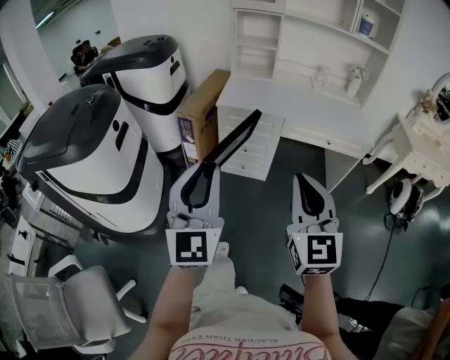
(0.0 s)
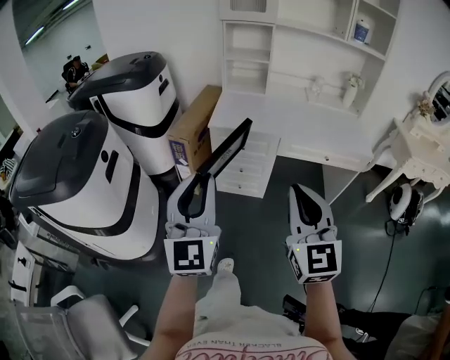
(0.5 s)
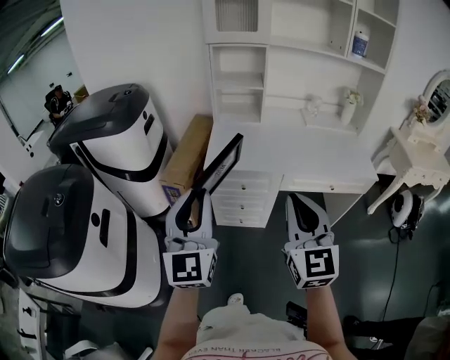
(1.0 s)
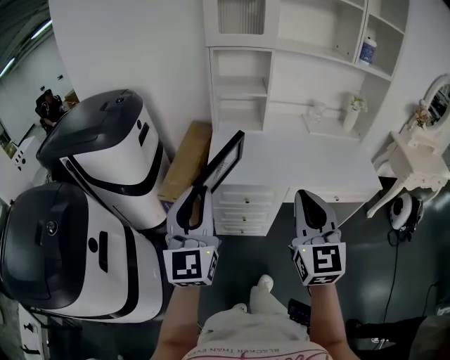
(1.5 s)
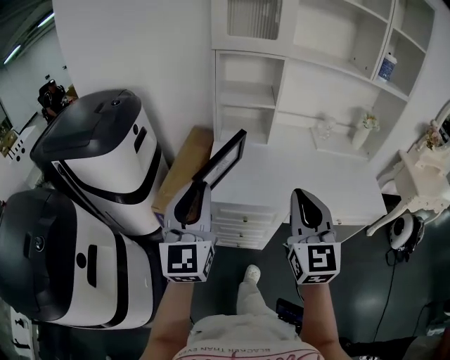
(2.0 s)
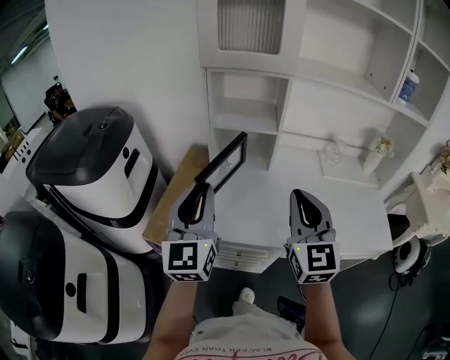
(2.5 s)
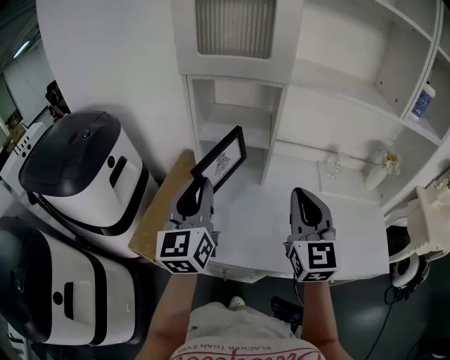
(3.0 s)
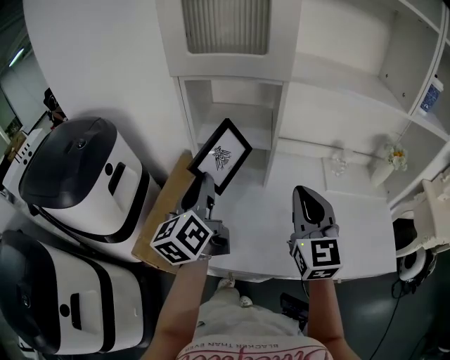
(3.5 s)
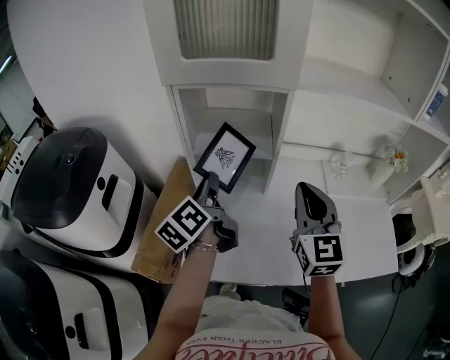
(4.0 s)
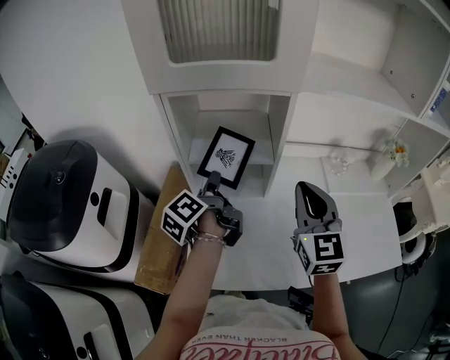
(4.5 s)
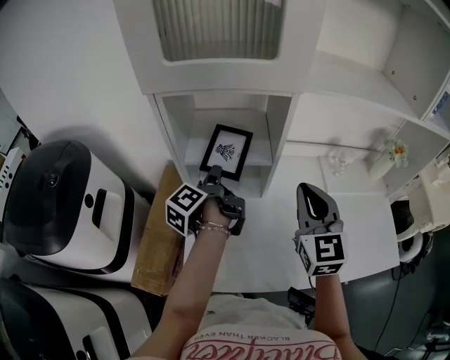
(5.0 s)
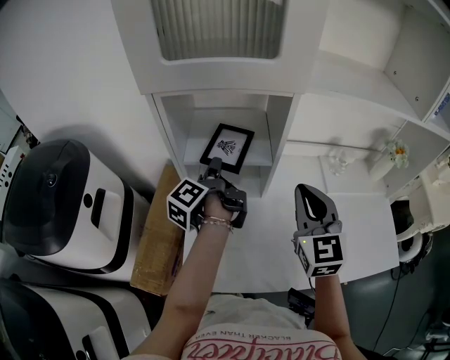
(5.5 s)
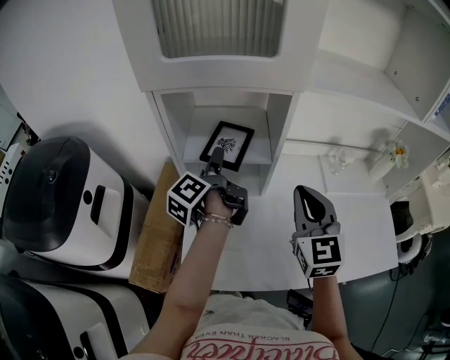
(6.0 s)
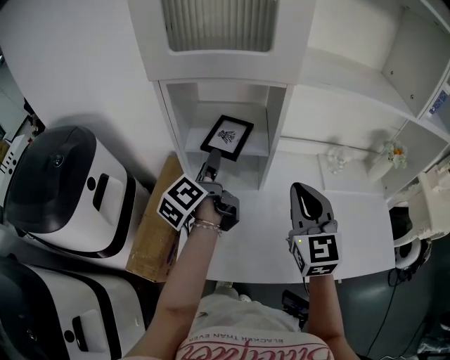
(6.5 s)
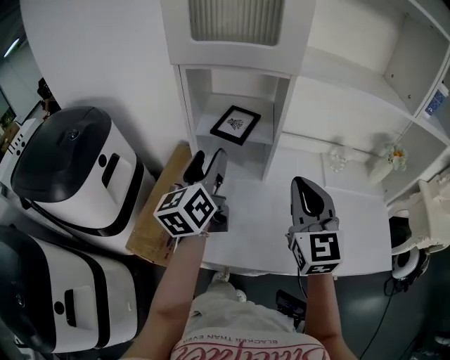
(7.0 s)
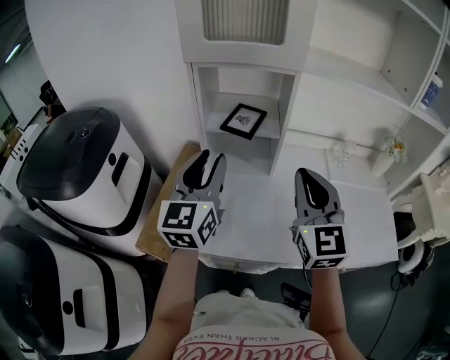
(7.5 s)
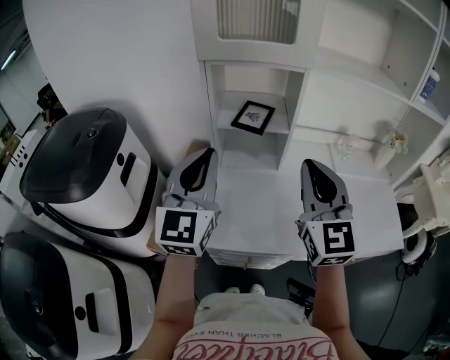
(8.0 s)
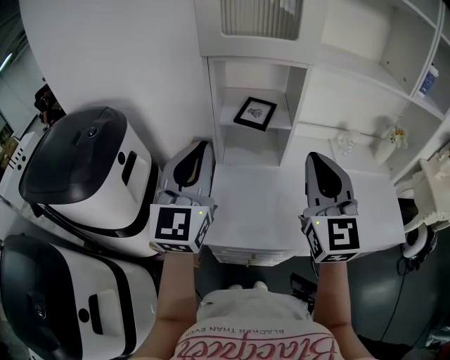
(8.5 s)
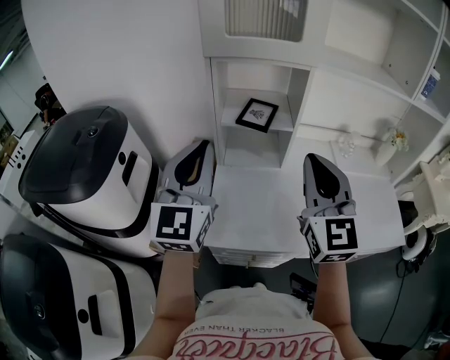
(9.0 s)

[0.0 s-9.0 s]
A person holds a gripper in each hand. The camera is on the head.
0.0 to 2.0 s: Both grippers are carried forward, some 50 cm.
2.0 to 4.5 s: The two grippers go some 40 cm forward. The left gripper rotates around the line of its fingers by some 80 degrees, counterclockwise from behind.
4.5 to 7.0 s: The right gripper travels backward by approximately 5 cm; the left gripper is displaced backward and upward by some 10 cm, twists some 50 degrees clockwise, seen from behind, and opens.
7.0 to 9.0 s: The right gripper shifts roughly 10 cm to the left, upward and backward; the left gripper travels backward, upward and to the left by some 15 cm, rotates roughly 40 degrees, and closes.

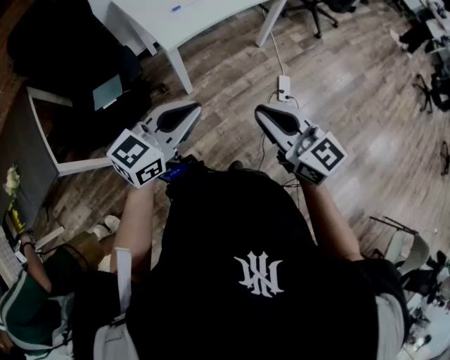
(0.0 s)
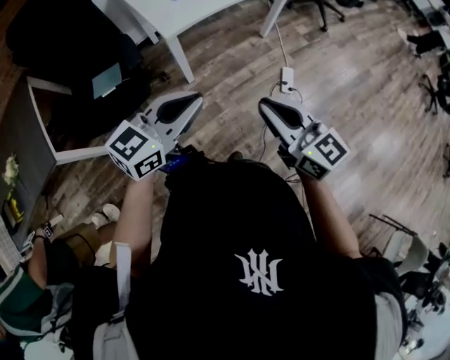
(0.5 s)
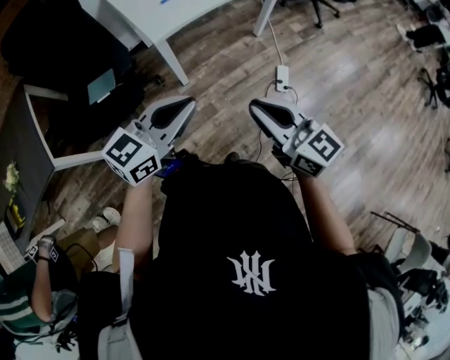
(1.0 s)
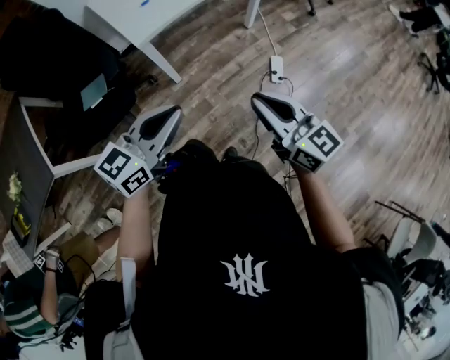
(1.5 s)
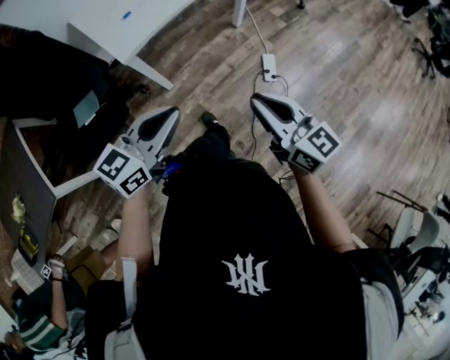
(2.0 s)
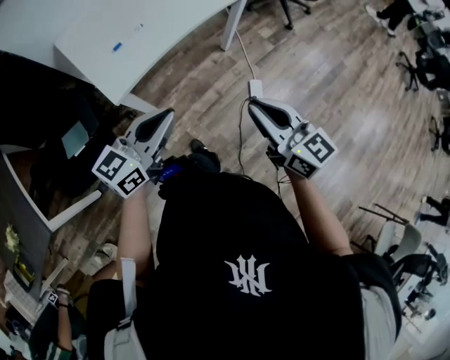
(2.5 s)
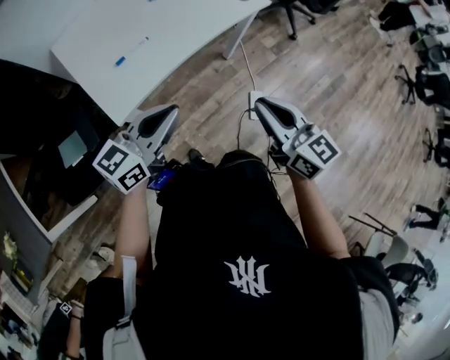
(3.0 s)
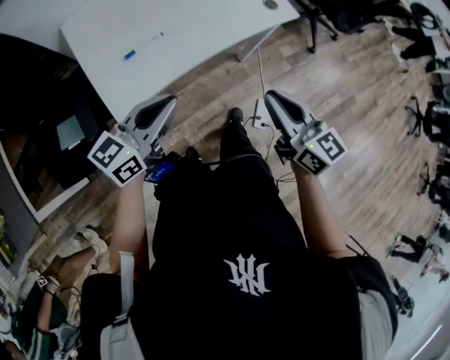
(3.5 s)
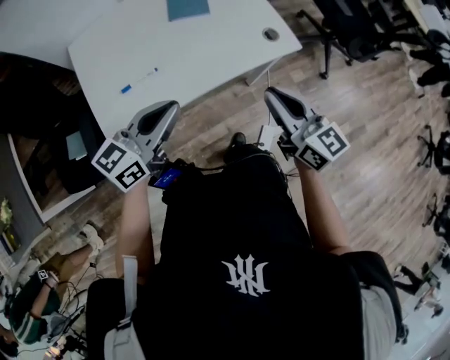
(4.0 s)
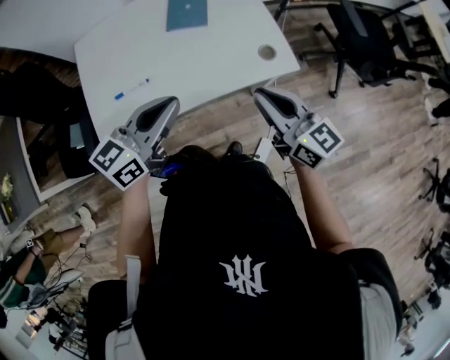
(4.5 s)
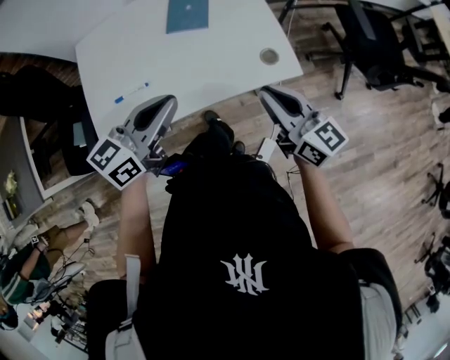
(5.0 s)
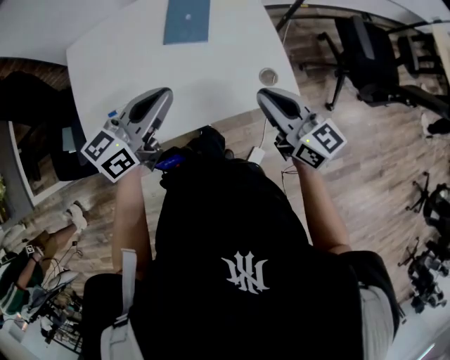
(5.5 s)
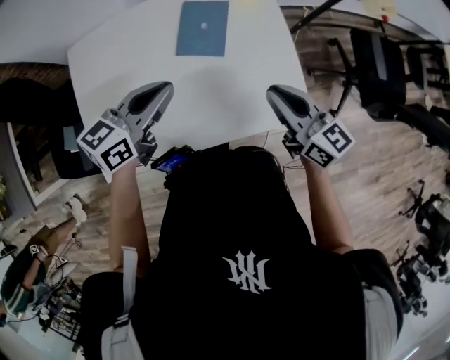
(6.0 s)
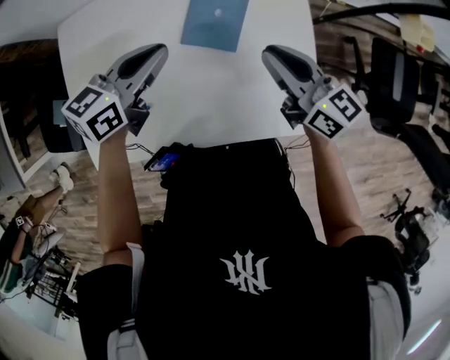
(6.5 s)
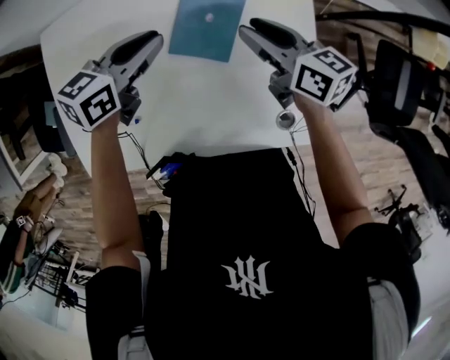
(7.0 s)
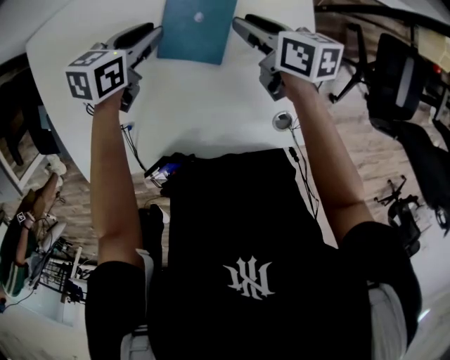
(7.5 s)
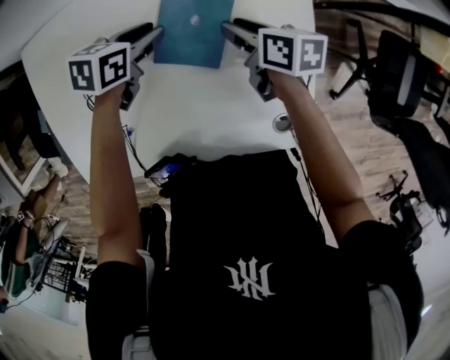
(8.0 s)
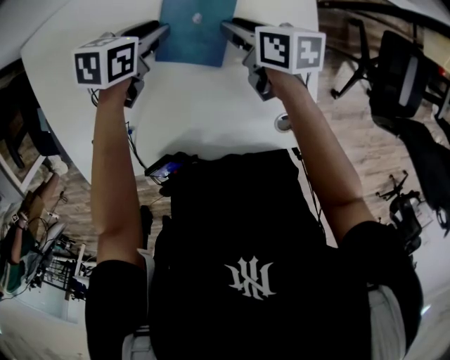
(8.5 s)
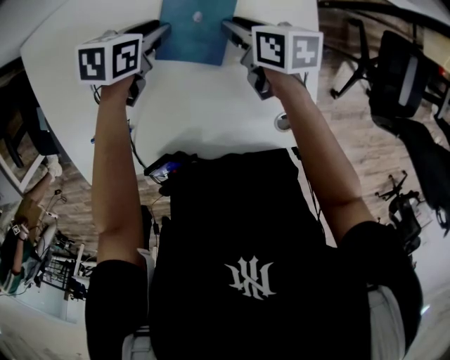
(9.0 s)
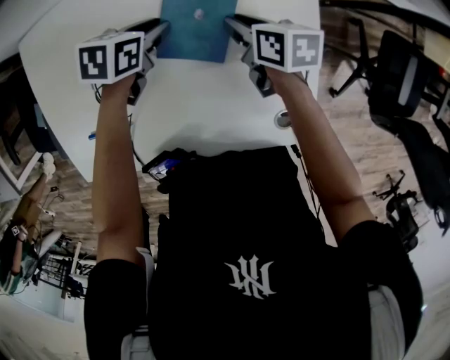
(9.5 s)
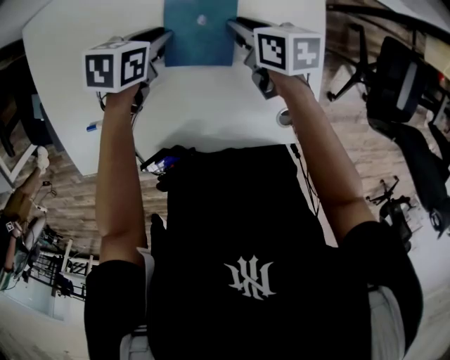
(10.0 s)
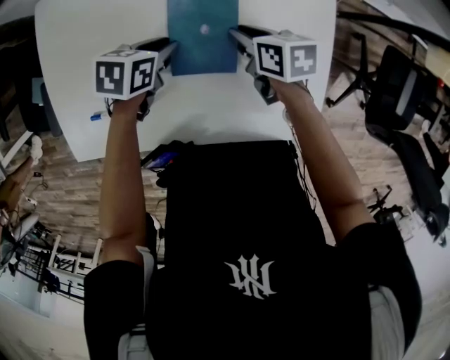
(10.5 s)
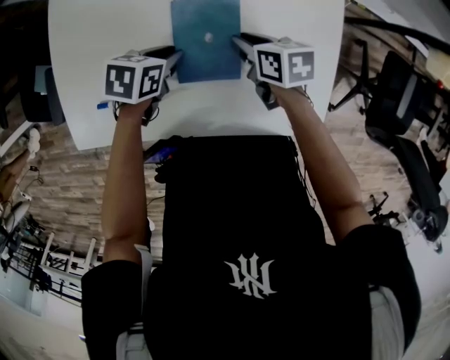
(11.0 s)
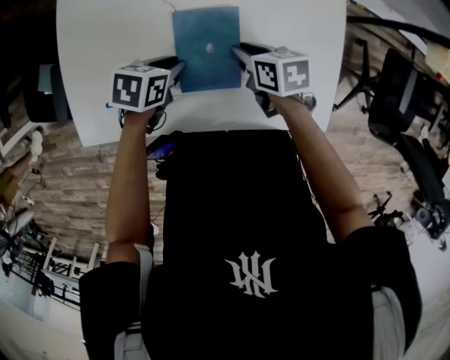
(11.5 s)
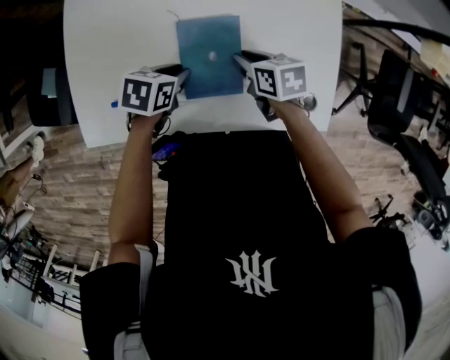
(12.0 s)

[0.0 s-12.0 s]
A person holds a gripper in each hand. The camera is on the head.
0.0 to 2.0 s: The right gripper goes roughly 15 cm to the right, forward and downward. The left gripper travels to the right and forward by roughly 10 cm.
2.0 to 4.0 s: The pair of grippers is taken forward, roughly 50 cm.
4.0 to 6.0 s: The grippers both shift forward by roughly 30 cm.
6.0 to 8.0 s: The right gripper goes approximately 30 cm forward, downward and to the left, rotates approximately 40 degrees, and opens up, while the left gripper moves downward and forward, roughly 25 cm, swivels roughly 30 degrees, and opens its fingers.
8.0 to 10.0 s: The left gripper changes place by some 5 cm.
10.0 to 12.0 s: The left gripper shifts about 15 cm backward. Meanwhile the right gripper goes about 15 cm backward and to the left.

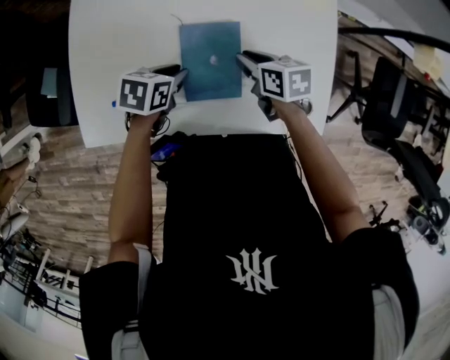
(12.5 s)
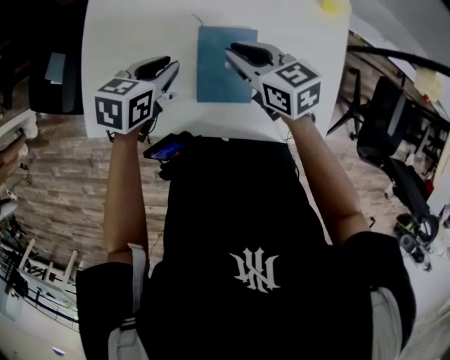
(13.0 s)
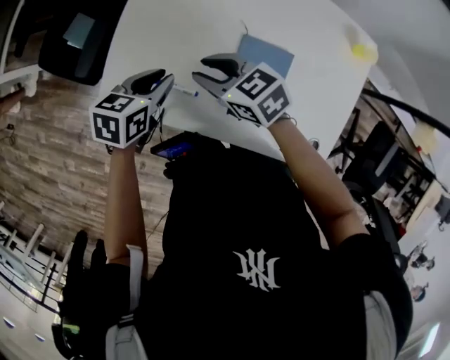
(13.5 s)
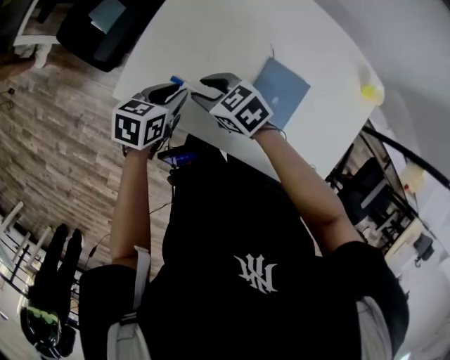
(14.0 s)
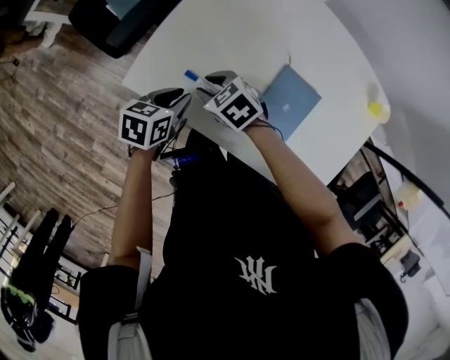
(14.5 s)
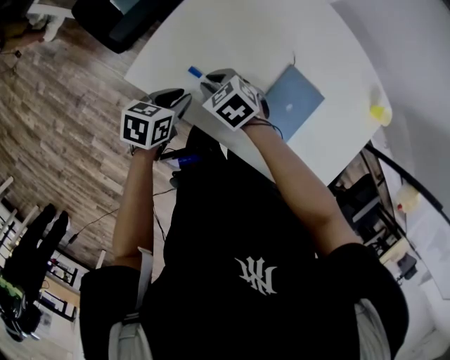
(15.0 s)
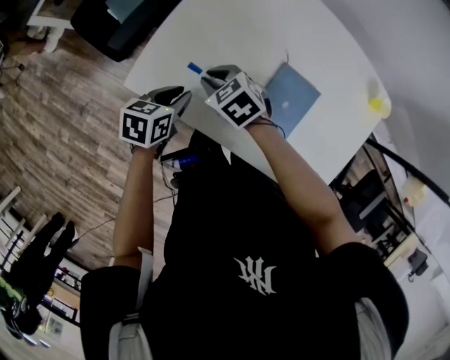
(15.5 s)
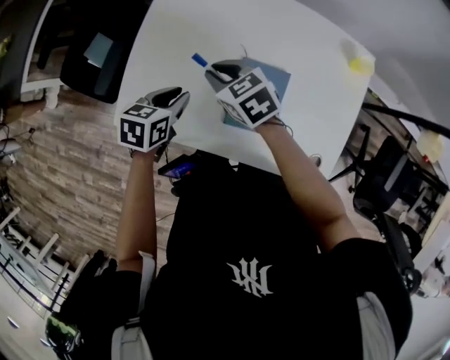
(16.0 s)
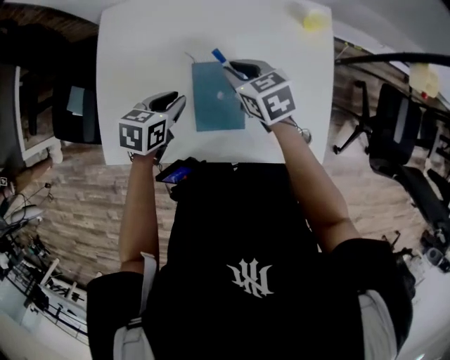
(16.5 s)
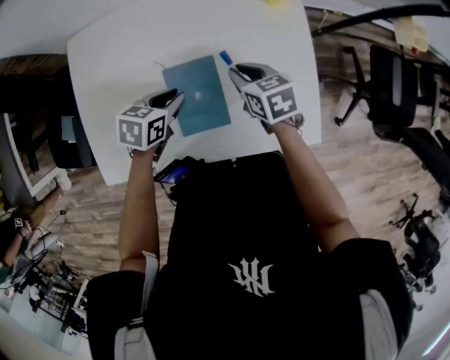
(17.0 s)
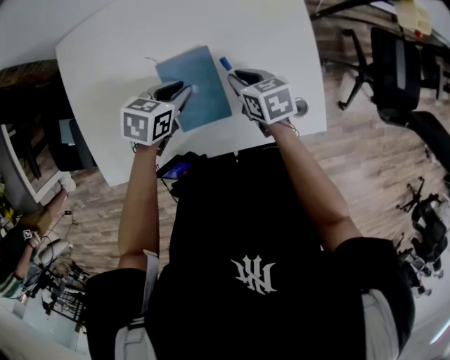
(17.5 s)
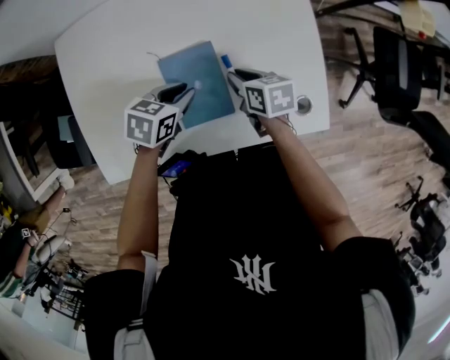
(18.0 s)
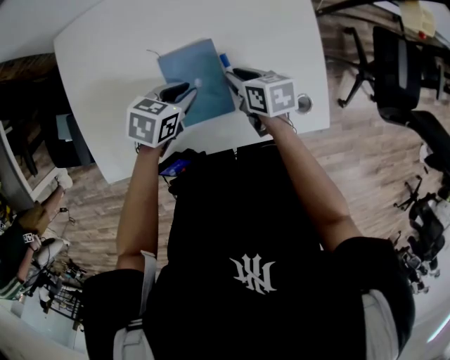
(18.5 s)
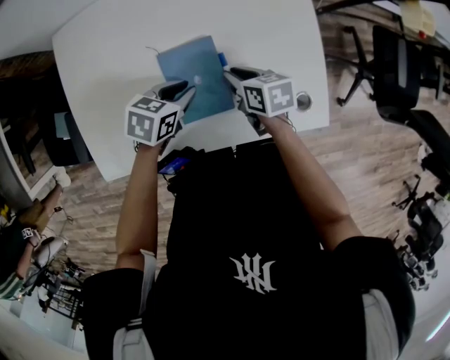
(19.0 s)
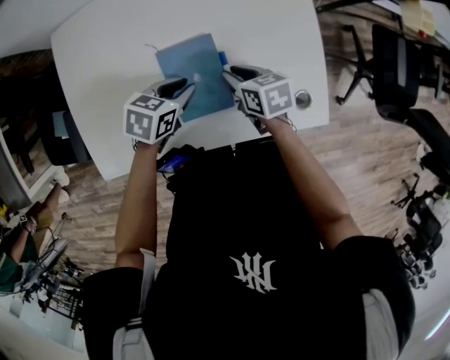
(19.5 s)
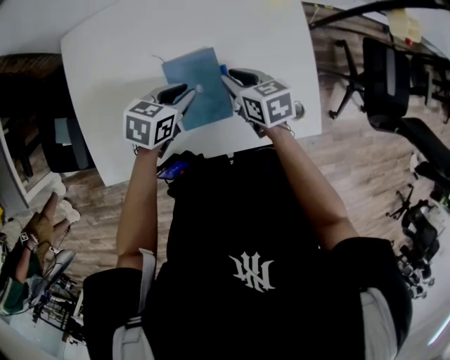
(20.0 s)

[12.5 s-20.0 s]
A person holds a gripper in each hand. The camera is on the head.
12.5 to 14.5 s: The right gripper reaches some 10 cm upward, then returns, and rotates around the line of its fingers by some 60 degrees, counterclockwise from behind; the left gripper moves some 10 cm upward and comes back, and swivels roughly 40 degrees.
14.5 to 16.5 s: The right gripper shifts by some 30 cm, and turns by approximately 50 degrees, while the left gripper shifts by approximately 20 cm, and changes its angle by approximately 30 degrees.
16.5 to 18.0 s: The right gripper moves downward, to the right and backward, approximately 15 cm, and swivels some 30 degrees. Meanwhile the left gripper heads to the right, covering some 10 cm, and rotates some 20 degrees.
18.0 to 20.0 s: The right gripper is displaced upward by about 5 cm.
